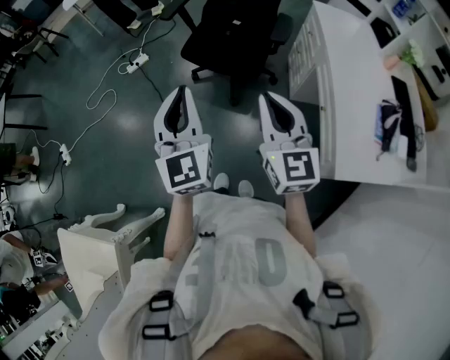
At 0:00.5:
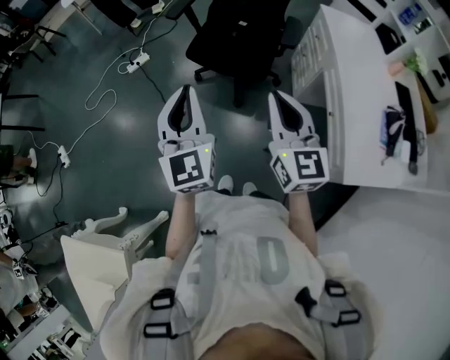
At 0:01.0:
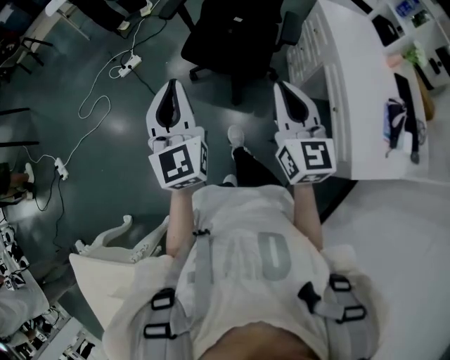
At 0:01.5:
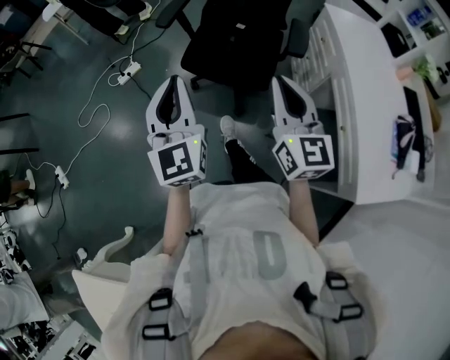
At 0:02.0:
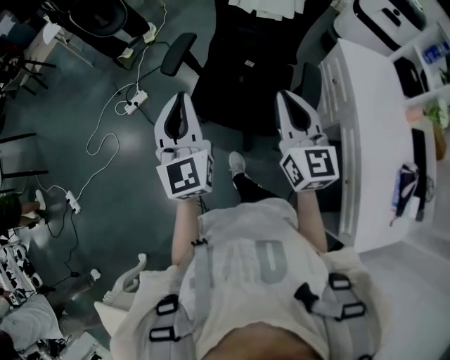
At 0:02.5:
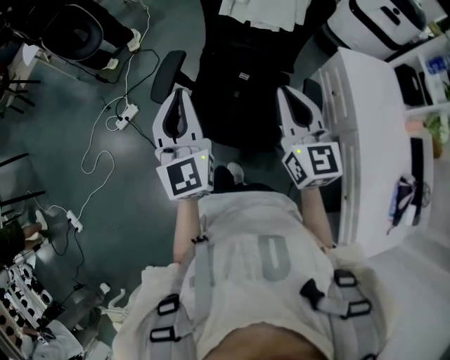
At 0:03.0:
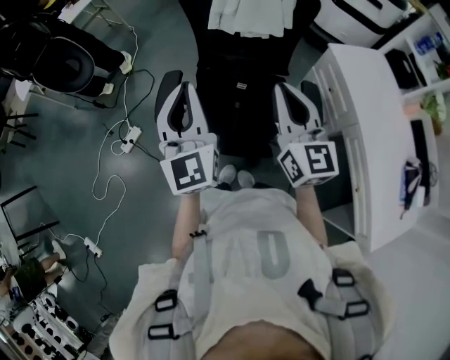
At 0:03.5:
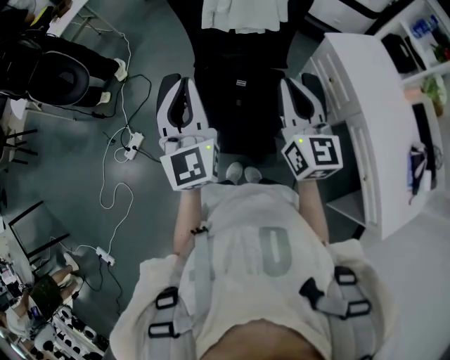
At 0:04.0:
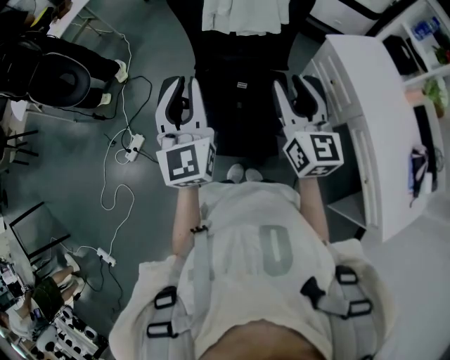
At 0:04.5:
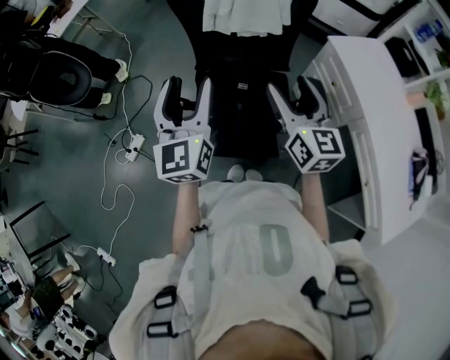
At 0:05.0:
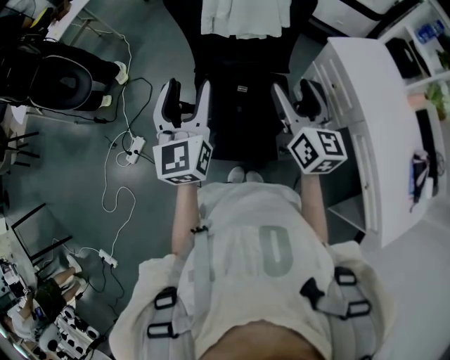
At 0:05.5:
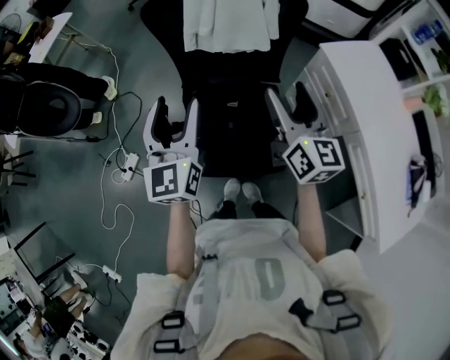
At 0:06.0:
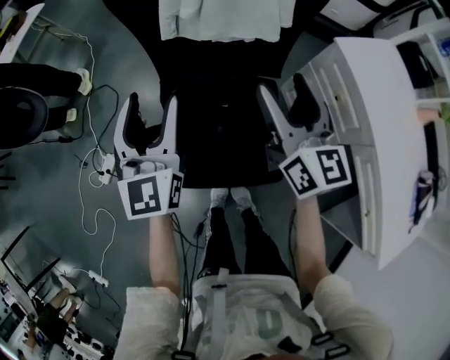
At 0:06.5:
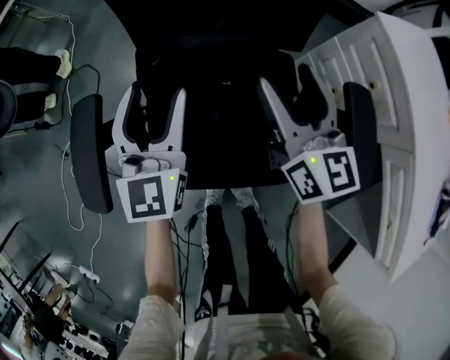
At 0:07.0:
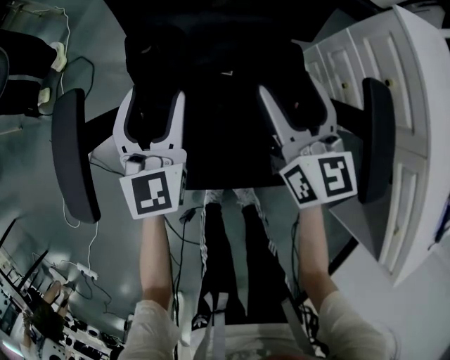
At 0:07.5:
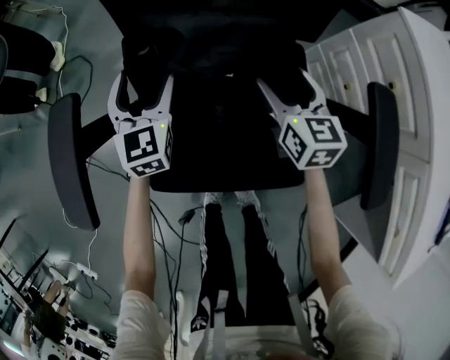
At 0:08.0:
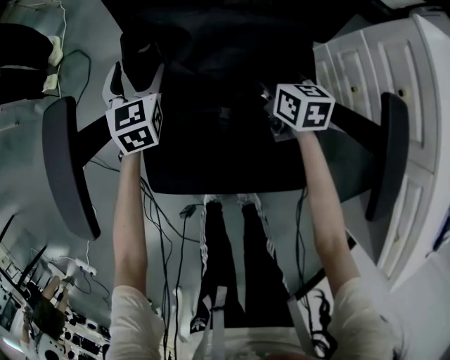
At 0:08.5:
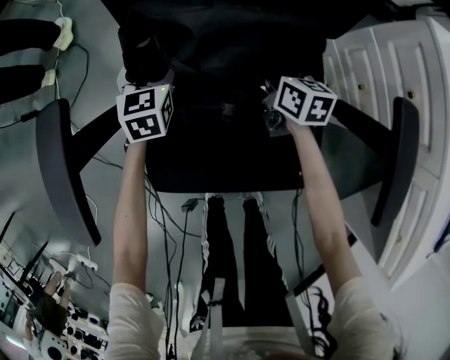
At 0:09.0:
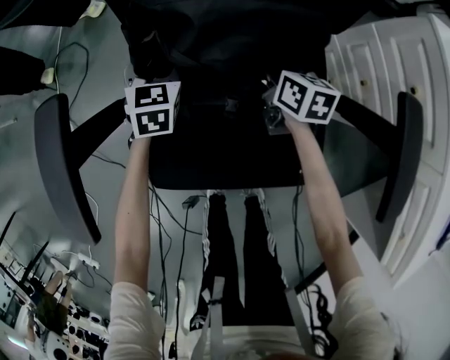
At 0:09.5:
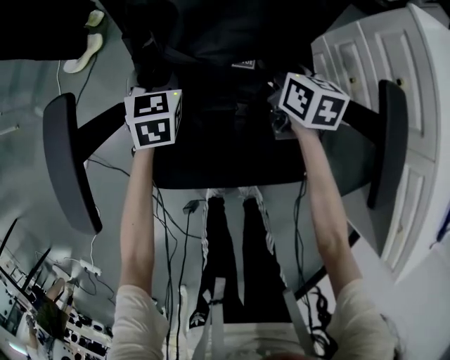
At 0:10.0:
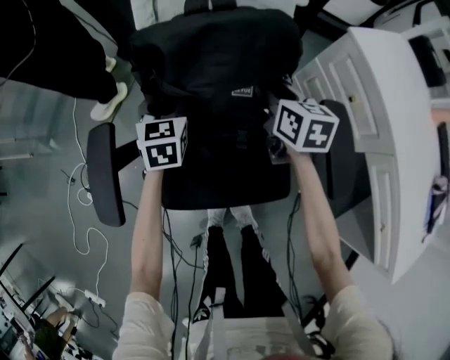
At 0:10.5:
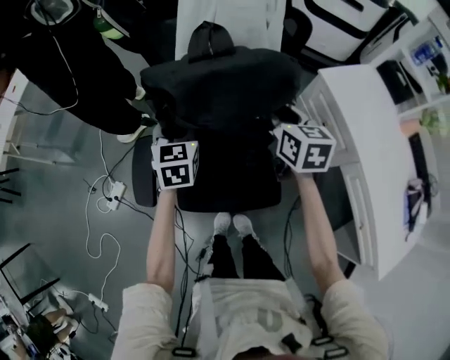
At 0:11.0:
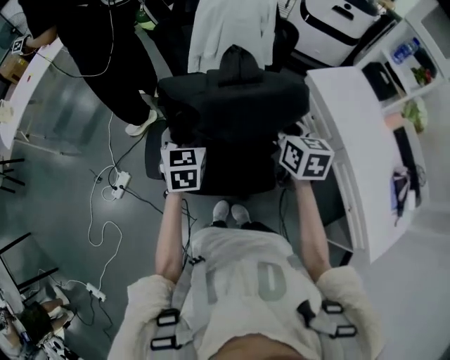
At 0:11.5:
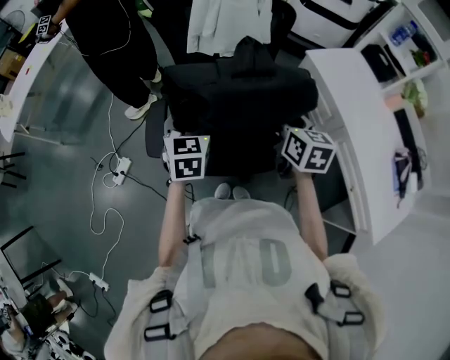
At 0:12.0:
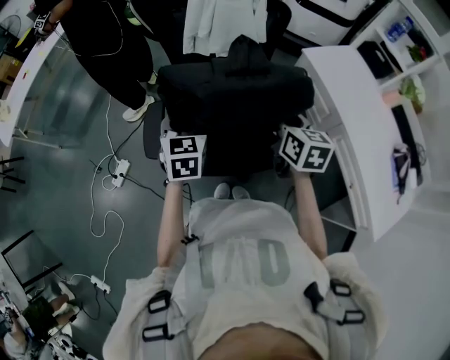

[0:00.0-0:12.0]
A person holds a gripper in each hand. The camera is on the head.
0:00.0 to 0:02.0: Both grippers are carried forward, some 40 cm.
0:02.0 to 0:04.0: Both grippers travel together forward, about 25 cm. The right gripper opens up. Meanwhile the left gripper swivels about 20 degrees.
0:04.0 to 0:06.0: Both grippers move forward and downward, about 20 cm. The left gripper opens up. Meanwhile the right gripper opens.
0:06.0 to 0:08.0: The grippers both shift downward by roughly 40 cm. The left gripper rotates some 30 degrees, while the right gripper points its fingers roughly 40 degrees further downward.
0:08.0 to 0:10.0: The left gripper travels upward and to the right by some 15 cm, and closes up, while the right gripper shifts roughly 20 cm upward, and closes up.
0:10.0 to 0:12.0: Both grippers move upward and backward, some 40 cm.

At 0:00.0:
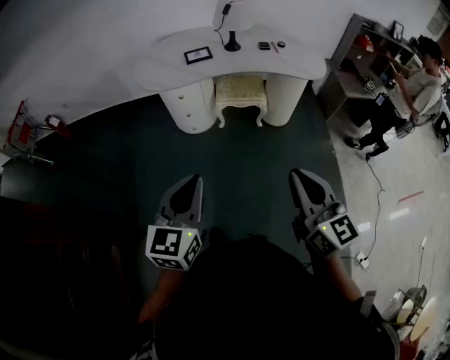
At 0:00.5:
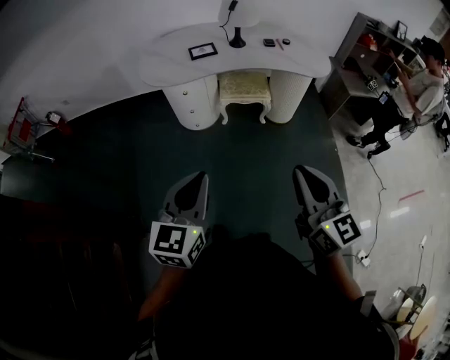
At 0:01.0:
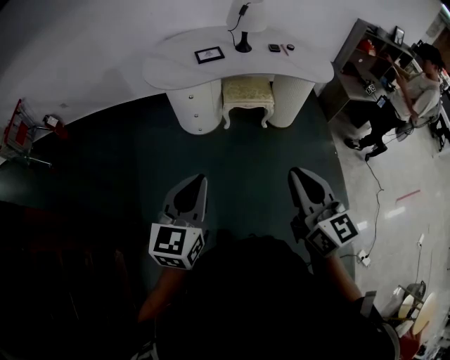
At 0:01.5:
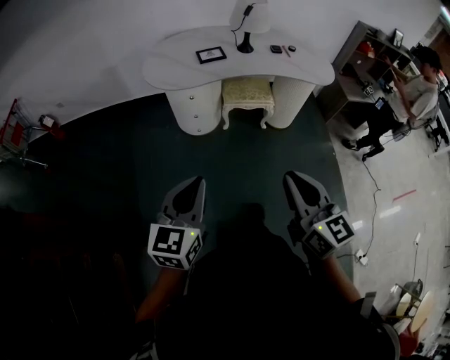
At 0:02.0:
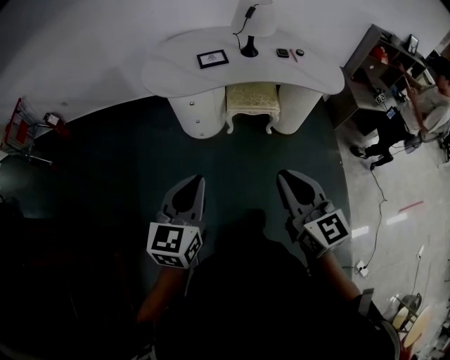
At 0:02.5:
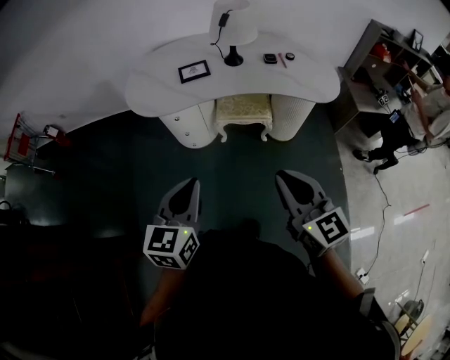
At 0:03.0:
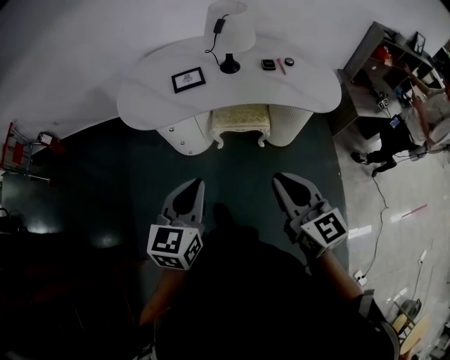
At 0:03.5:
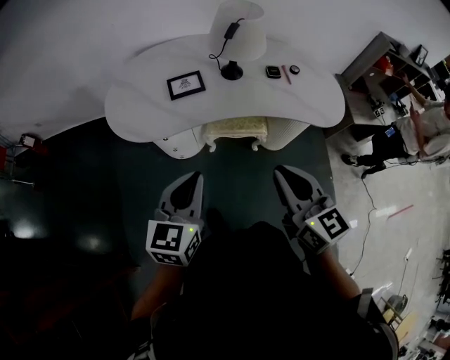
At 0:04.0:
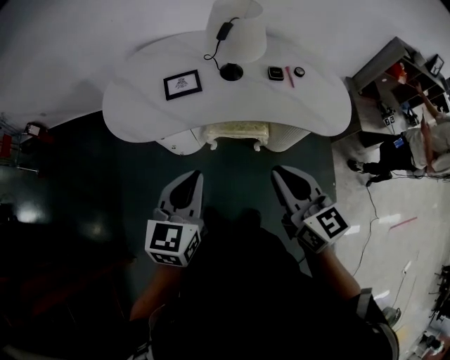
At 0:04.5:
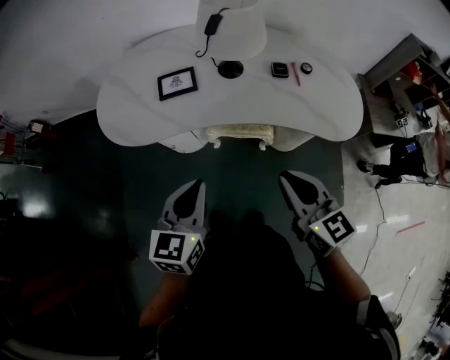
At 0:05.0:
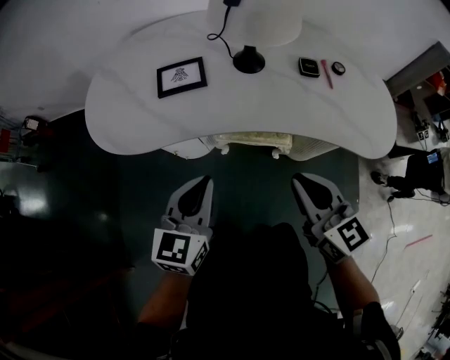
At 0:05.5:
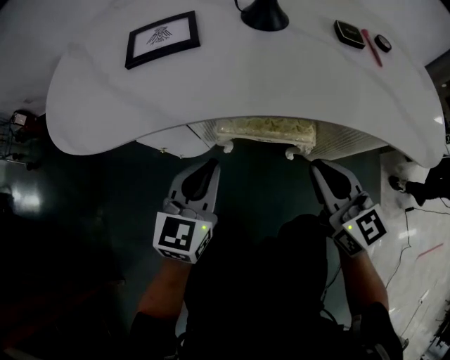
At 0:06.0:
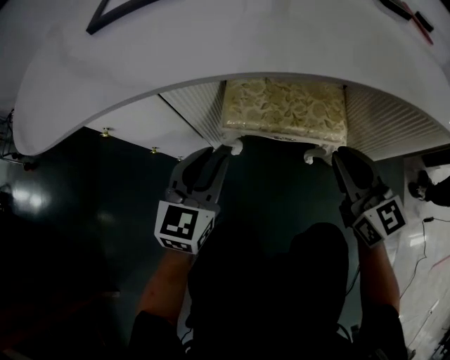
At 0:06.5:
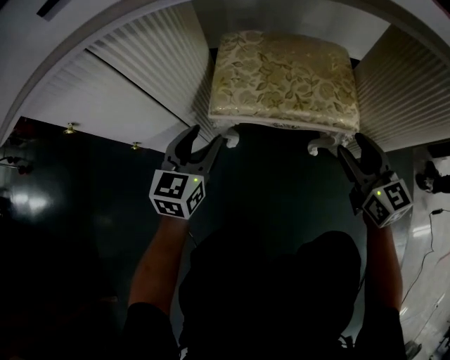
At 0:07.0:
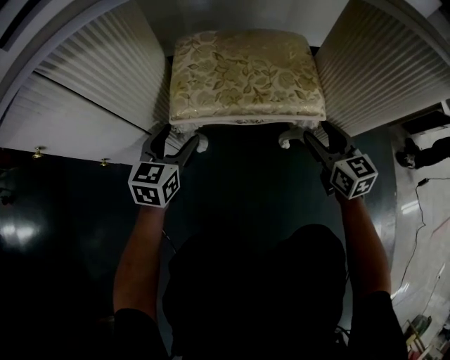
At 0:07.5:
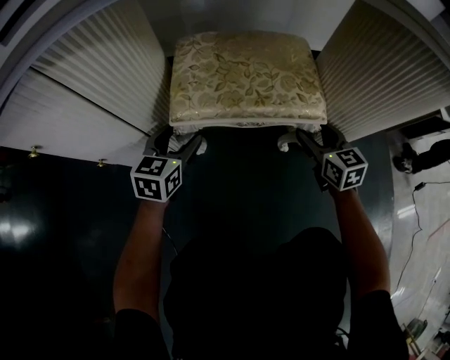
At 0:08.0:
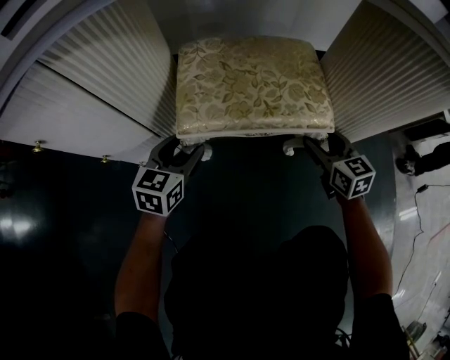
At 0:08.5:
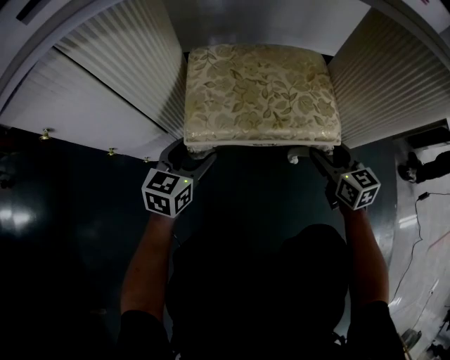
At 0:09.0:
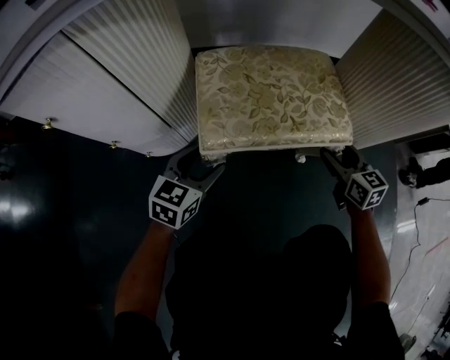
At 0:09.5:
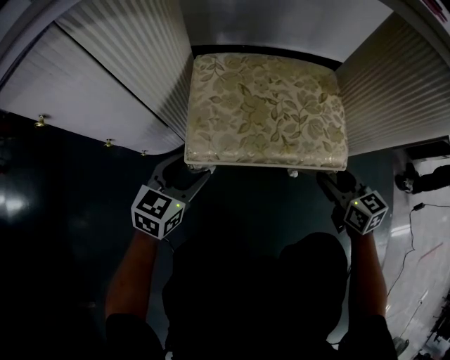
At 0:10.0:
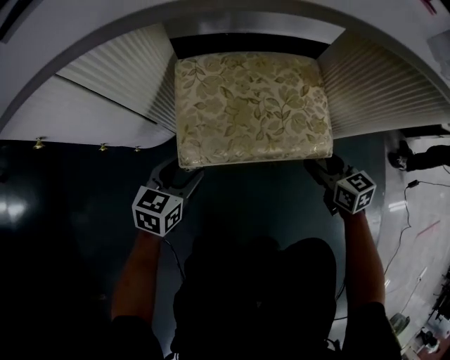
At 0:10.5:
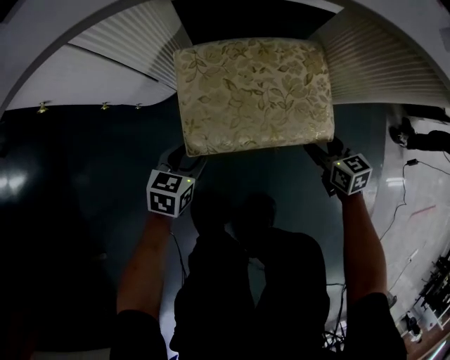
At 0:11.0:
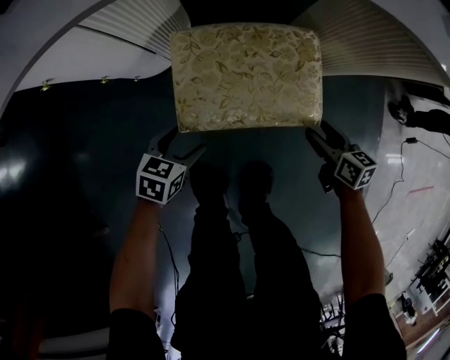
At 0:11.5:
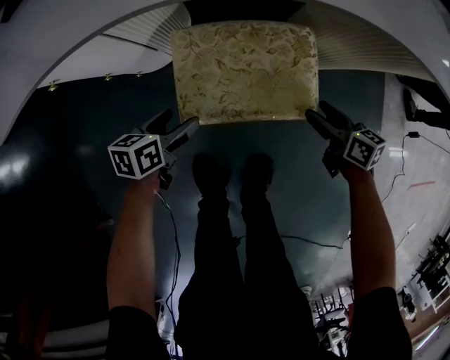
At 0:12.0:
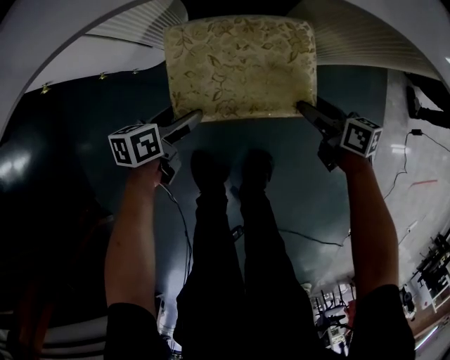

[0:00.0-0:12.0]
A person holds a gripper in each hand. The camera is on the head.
0:00.0 to 0:02.0: The grippers both shift forward and to the left by some 15 cm.
0:02.0 to 0:04.0: The two grippers go about 35 cm forward and to the right.
0:04.0 to 0:06.0: Both grippers travel together downward and forward, approximately 60 cm.
0:06.0 to 0:08.0: The right gripper is displaced downward by roughly 20 cm, swivels some 20 degrees, and opens up. The left gripper shifts approximately 20 cm downward and forward, and opens.
0:08.0 to 0:10.0: There are only small adjustments of the grippers.
0:10.0 to 0:12.0: The grippers both shift upward by about 10 cm. The right gripper changes its angle by some 30 degrees. Meanwhile the left gripper turns by roughly 40 degrees.

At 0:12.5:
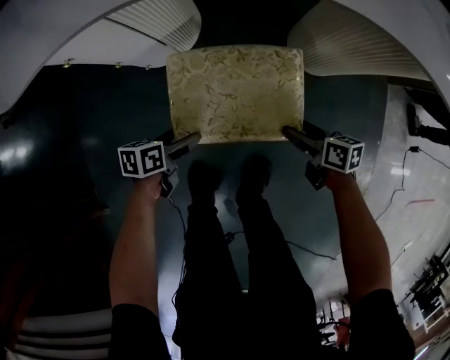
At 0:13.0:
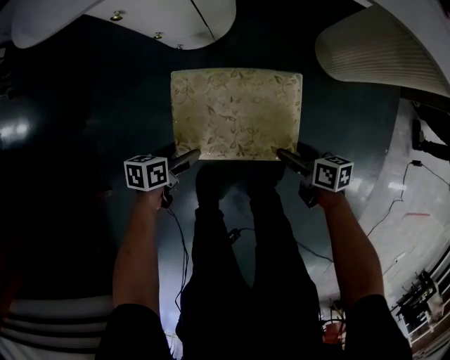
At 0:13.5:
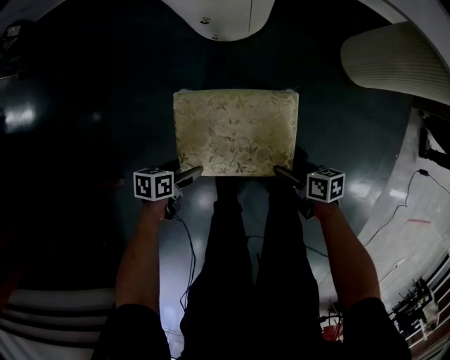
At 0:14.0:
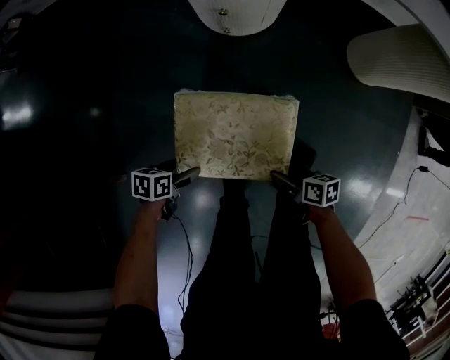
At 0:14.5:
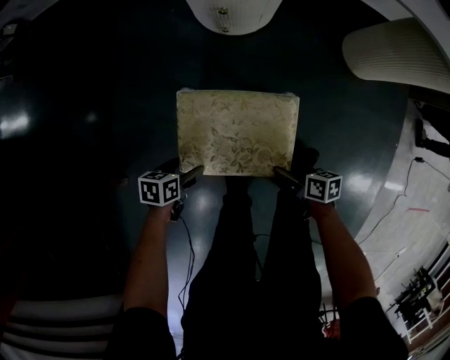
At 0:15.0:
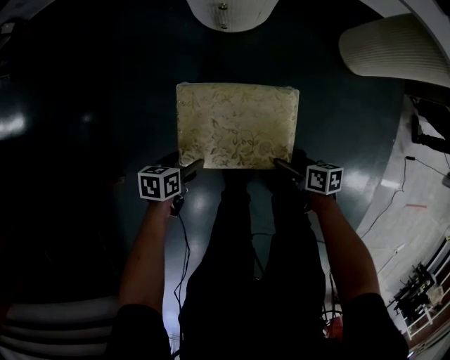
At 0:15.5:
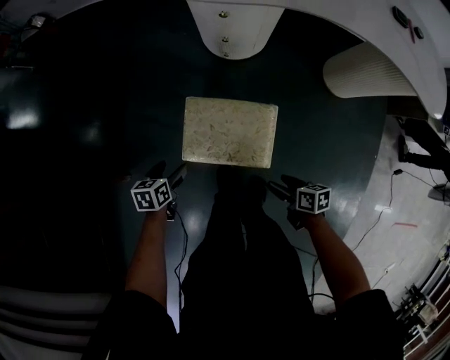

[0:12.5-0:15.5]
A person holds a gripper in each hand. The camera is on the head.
0:12.5 to 0:14.0: There are only small adjustments of the grippers.
0:14.0 to 0:15.5: The grippers both shift upward by about 15 cm. The left gripper changes its angle by roughly 20 degrees.
